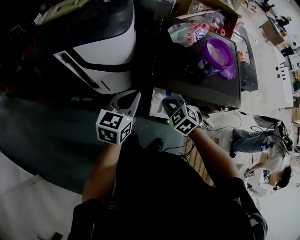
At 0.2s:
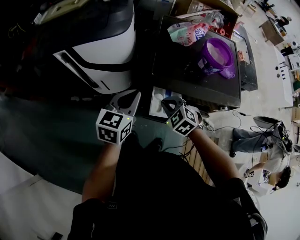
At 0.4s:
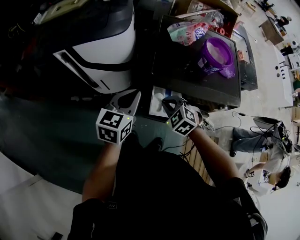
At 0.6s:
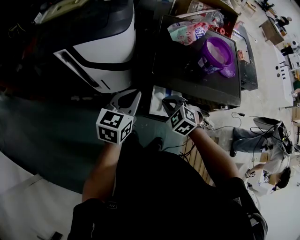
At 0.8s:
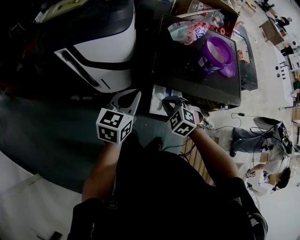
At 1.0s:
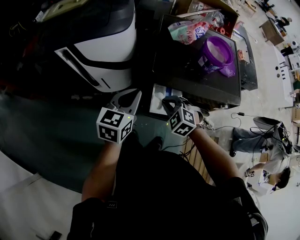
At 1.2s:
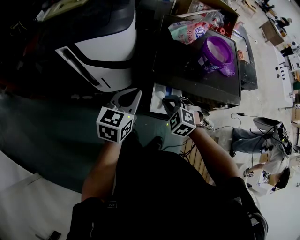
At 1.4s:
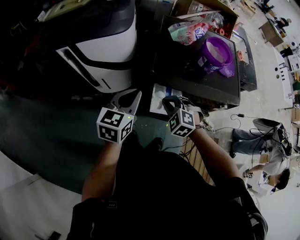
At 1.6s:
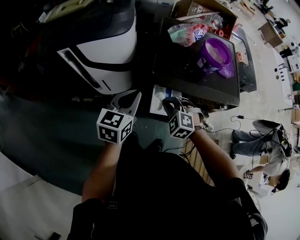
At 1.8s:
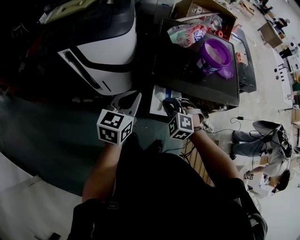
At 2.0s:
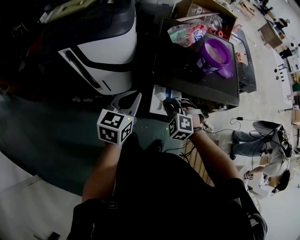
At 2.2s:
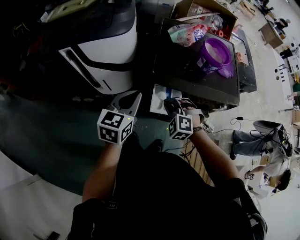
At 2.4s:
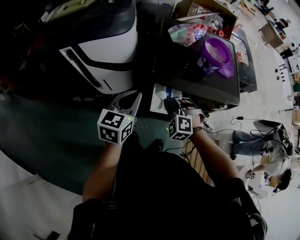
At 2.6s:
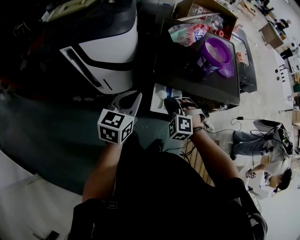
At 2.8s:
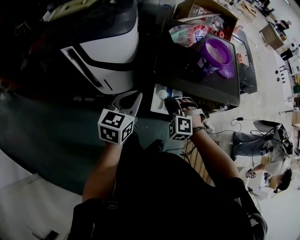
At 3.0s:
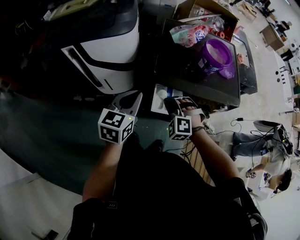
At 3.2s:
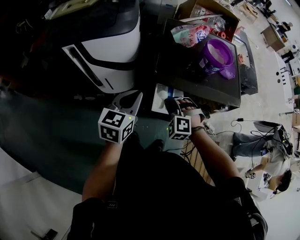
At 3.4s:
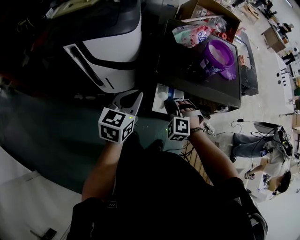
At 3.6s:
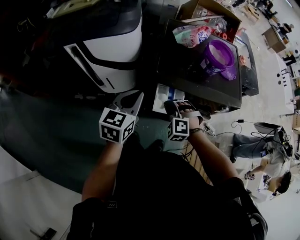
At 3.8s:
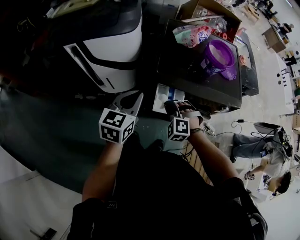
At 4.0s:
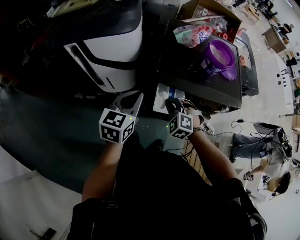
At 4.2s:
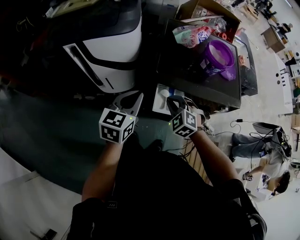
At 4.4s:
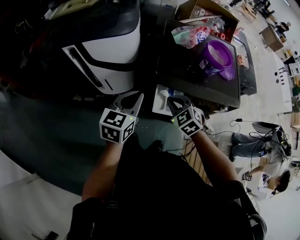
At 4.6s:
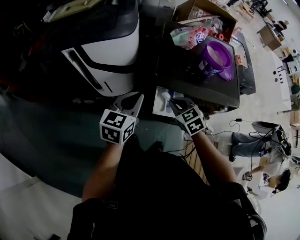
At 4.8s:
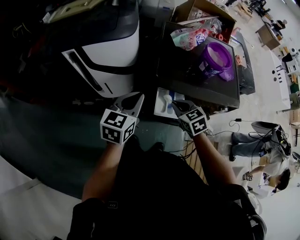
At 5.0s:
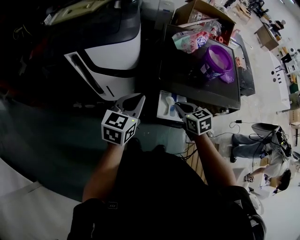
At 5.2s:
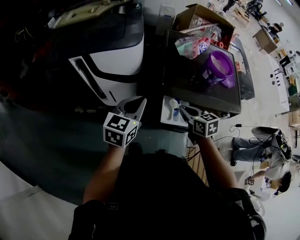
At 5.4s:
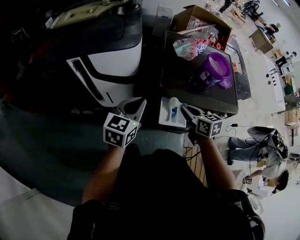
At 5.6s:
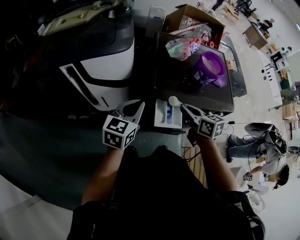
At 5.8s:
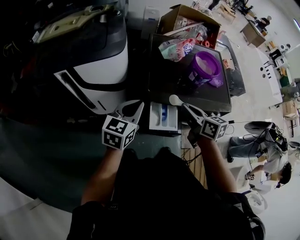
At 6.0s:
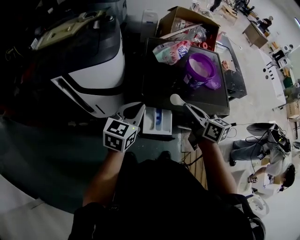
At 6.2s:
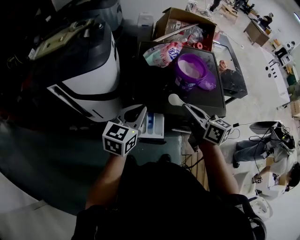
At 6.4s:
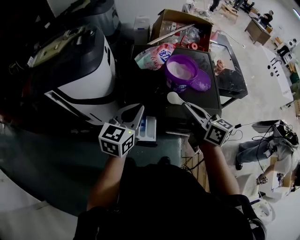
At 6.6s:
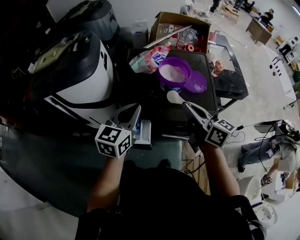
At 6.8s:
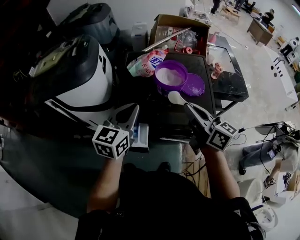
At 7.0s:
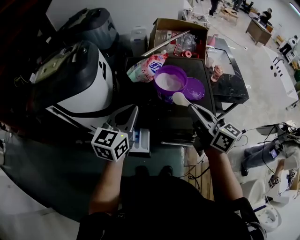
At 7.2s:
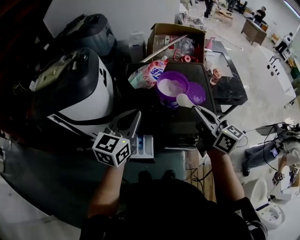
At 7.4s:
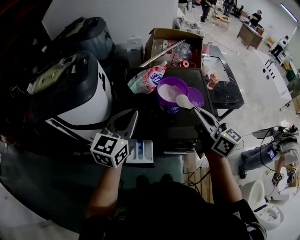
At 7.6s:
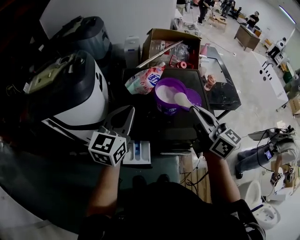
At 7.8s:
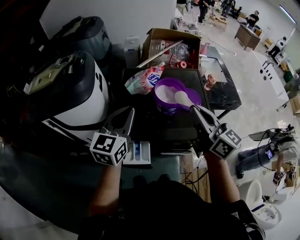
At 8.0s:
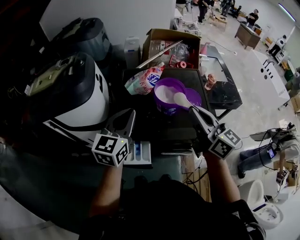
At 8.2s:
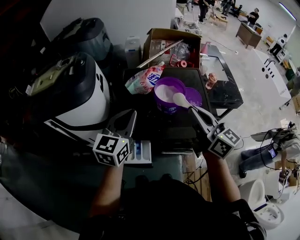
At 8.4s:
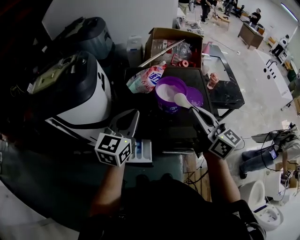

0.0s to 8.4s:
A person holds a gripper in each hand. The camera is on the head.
0.0s to 1.4s: There are only small adjustments of the grippers.
1.4s to 2.8s: The grippers move only a little.
2.8s to 4.2s: The right gripper changes its angle by approximately 20 degrees.
4.2s to 5.6s: The right gripper heads upward, covering about 10 cm, and rolls clockwise, seen from behind, by some 70 degrees.
5.6s to 7.0s: The grippers both shift to the right and upward by some 30 cm. The right gripper points its fingers roughly 30 degrees further upward.

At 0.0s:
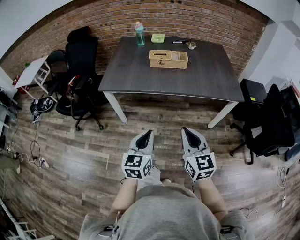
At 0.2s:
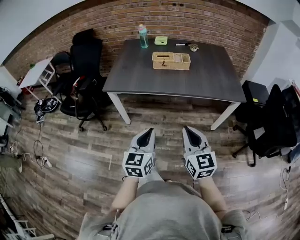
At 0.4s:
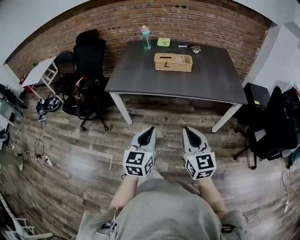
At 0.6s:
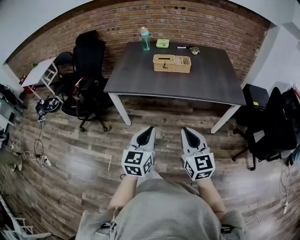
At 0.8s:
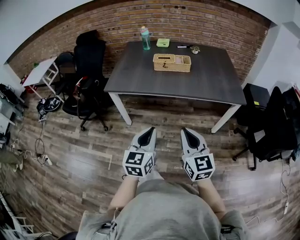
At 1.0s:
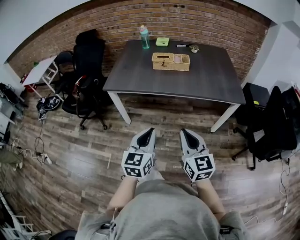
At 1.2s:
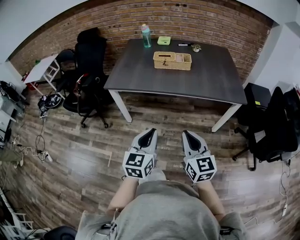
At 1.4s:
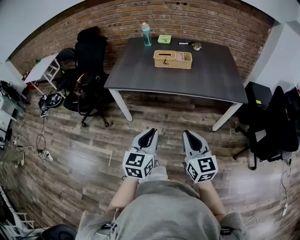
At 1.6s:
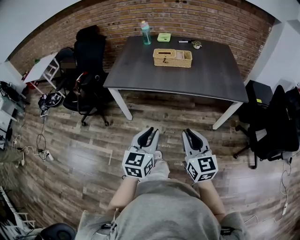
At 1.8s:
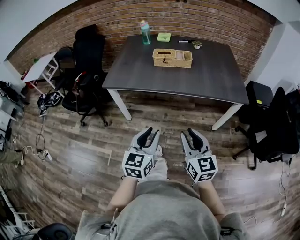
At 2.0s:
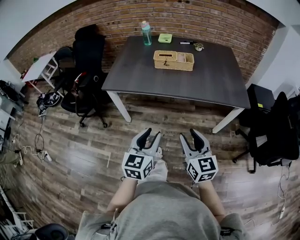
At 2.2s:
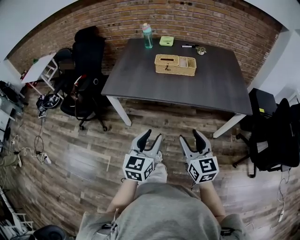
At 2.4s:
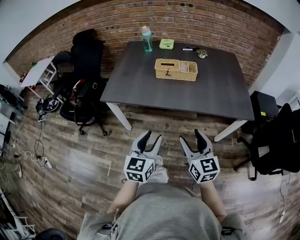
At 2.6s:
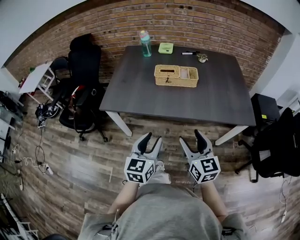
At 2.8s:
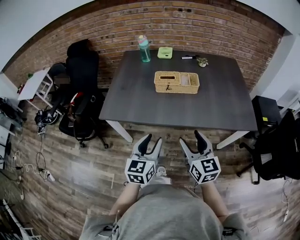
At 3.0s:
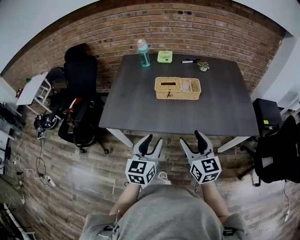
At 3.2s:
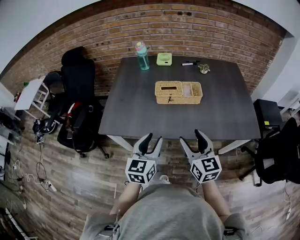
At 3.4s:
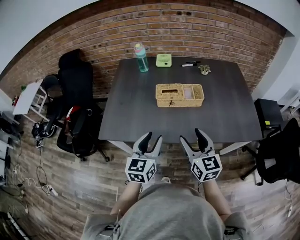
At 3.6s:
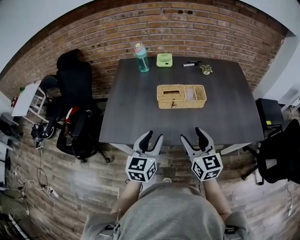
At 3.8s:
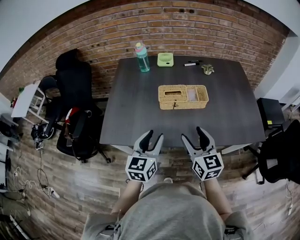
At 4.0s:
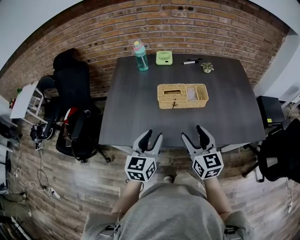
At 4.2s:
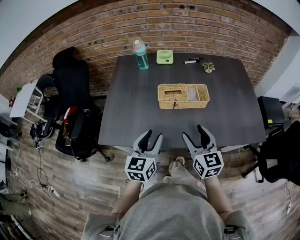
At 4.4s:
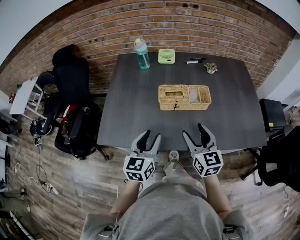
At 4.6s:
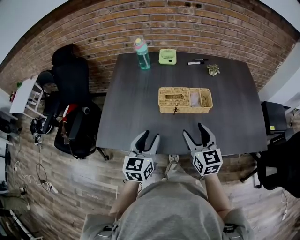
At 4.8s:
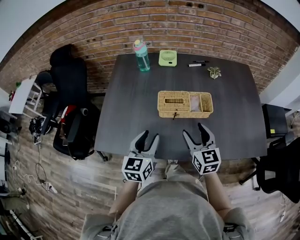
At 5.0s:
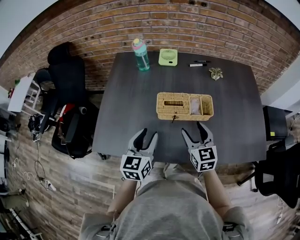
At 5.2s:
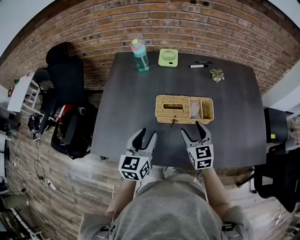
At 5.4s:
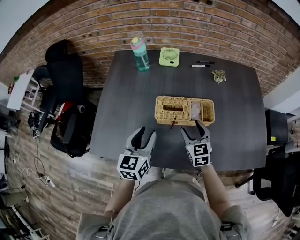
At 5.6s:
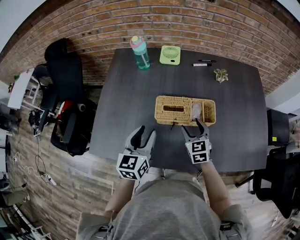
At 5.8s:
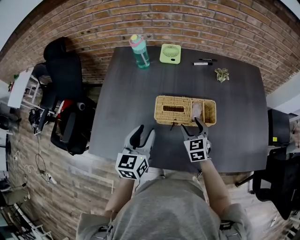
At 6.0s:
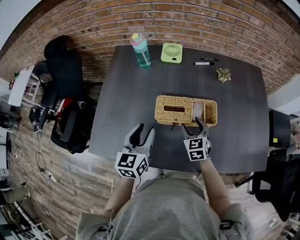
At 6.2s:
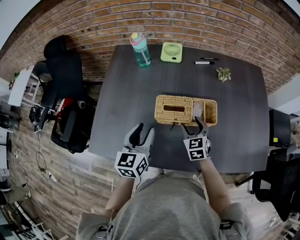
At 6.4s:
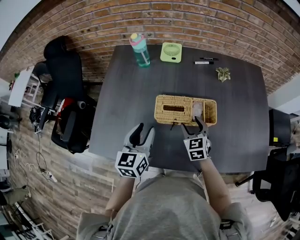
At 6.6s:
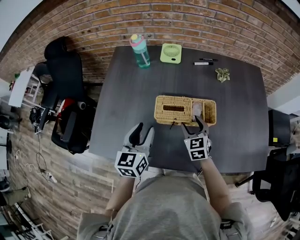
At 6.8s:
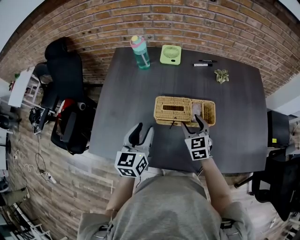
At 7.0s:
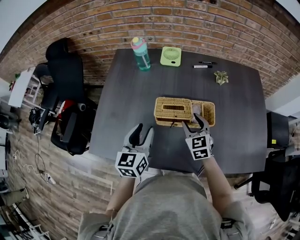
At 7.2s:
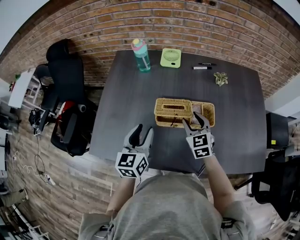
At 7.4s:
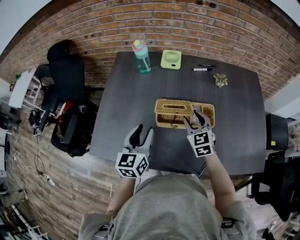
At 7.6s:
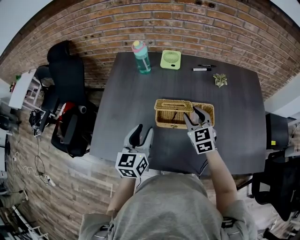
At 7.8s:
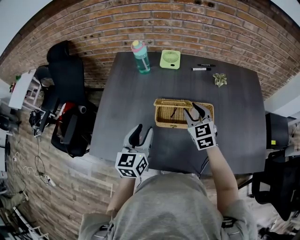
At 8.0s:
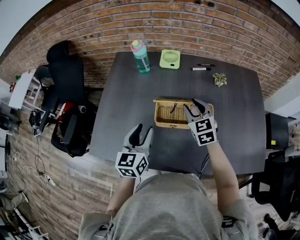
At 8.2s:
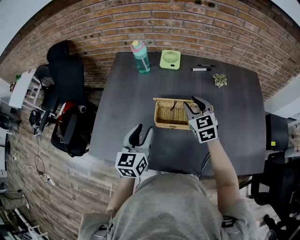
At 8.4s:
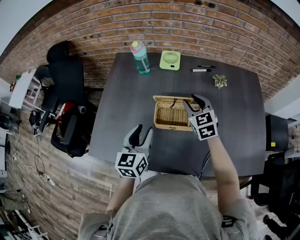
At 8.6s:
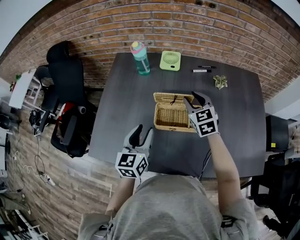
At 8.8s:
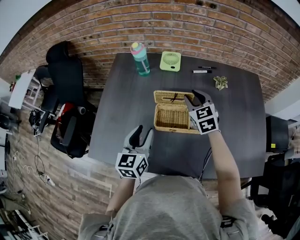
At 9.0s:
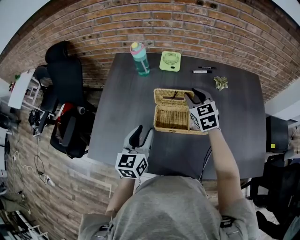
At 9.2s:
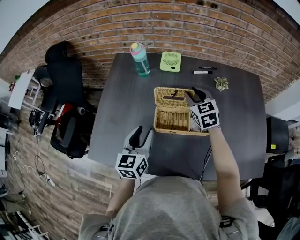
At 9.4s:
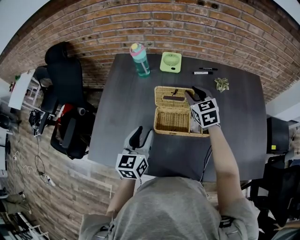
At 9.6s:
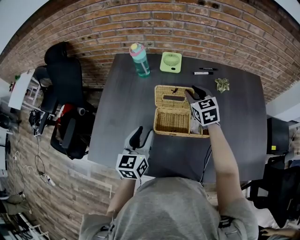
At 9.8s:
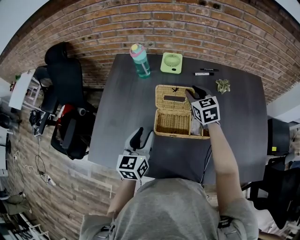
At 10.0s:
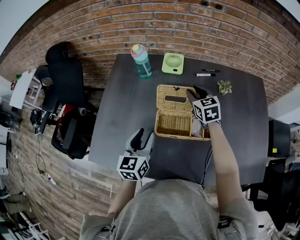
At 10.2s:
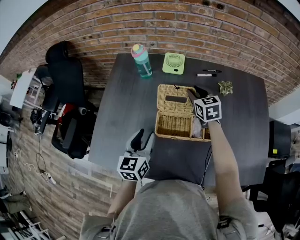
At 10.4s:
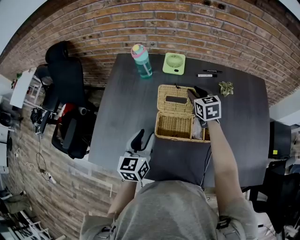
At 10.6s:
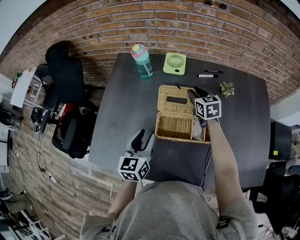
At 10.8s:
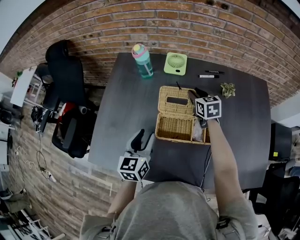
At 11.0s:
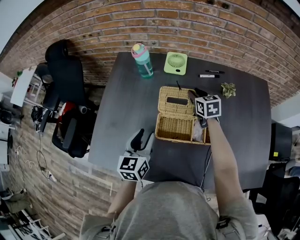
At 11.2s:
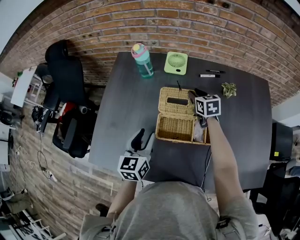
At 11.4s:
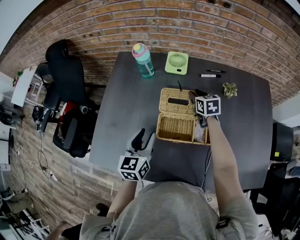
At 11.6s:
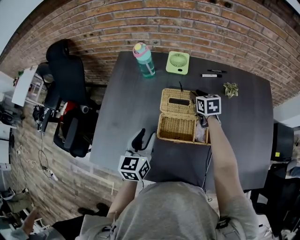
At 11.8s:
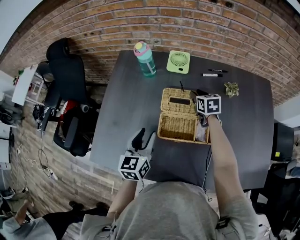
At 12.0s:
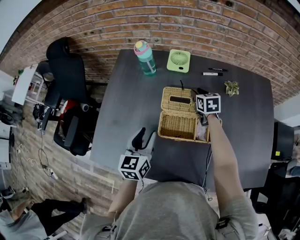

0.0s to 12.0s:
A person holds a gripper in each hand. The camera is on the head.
0.0s to 1.6s: The right gripper moves some 5 cm; the left gripper changes place by roughly 5 cm.
1.6s to 3.0s: The grippers both shift forward by some 30 cm. The left gripper opens up. The right gripper opens.
3.0s to 4.4s: The grippers both shift forward by about 15 cm.
4.4s to 6.0s: The left gripper shifts roughly 15 cm forward; the right gripper moves forward and downward, some 25 cm, and swivels roughly 30 degrees.
6.0s to 7.6s: The right gripper is displaced upward by about 10 cm.
7.6s to 9.0s: The right gripper shifts approximately 10 cm forward.
9.0s to 10.4s: The right gripper travels forward by some 10 cm.
10.4s to 12.0s: The right gripper goes about 5 cm downward.

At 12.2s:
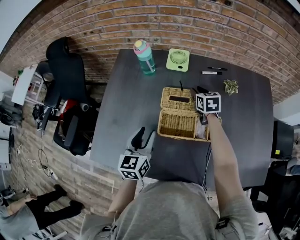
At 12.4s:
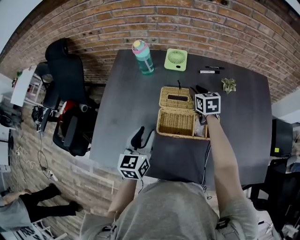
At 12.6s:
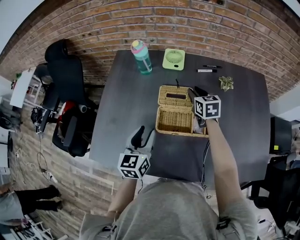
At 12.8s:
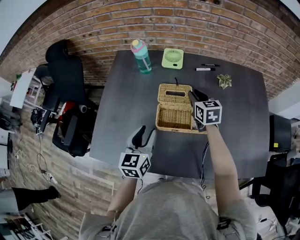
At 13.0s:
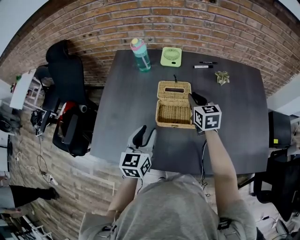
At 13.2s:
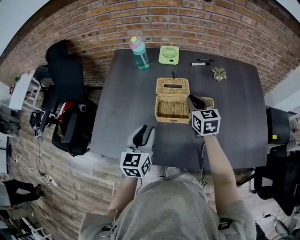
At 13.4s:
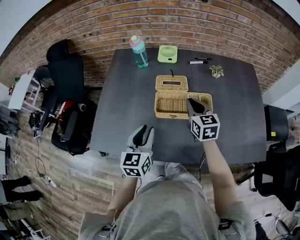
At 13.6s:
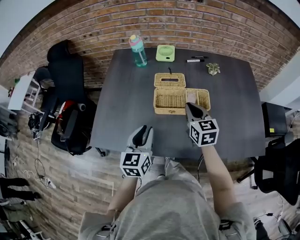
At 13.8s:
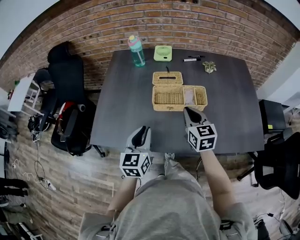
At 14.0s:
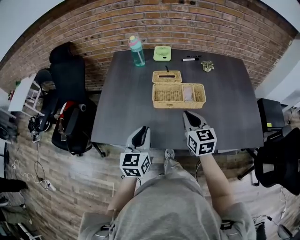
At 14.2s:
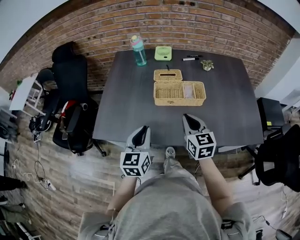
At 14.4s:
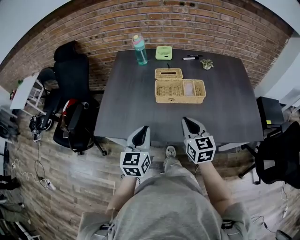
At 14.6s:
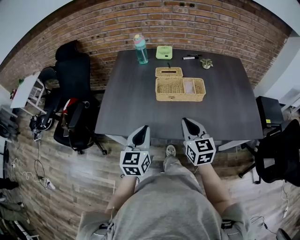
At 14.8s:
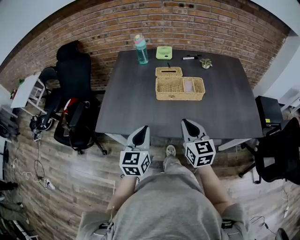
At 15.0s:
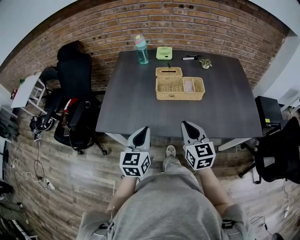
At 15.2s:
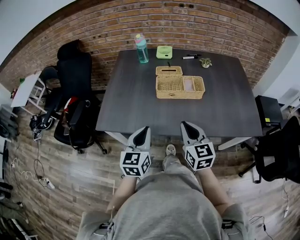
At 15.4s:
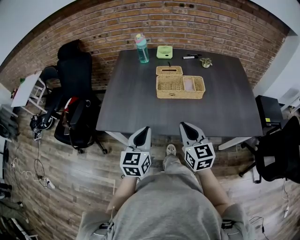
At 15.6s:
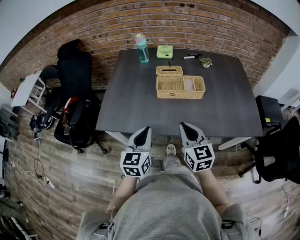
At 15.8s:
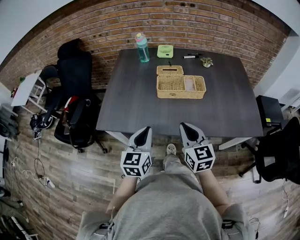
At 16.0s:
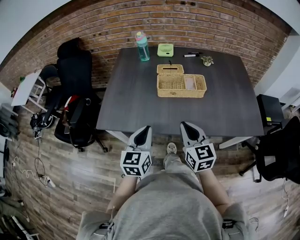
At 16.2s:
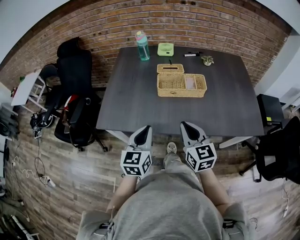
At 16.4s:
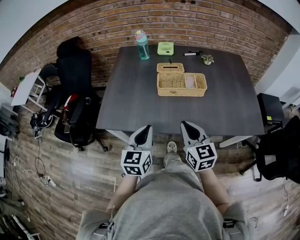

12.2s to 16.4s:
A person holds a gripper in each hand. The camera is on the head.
12.2s to 13.6s: The right gripper moves backward, approximately 25 cm, and closes its fingers. The left gripper goes roughly 15 cm backward.
13.6s to 15.0s: The left gripper heads backward, covering about 15 cm; the right gripper is displaced backward by about 25 cm.
15.0s to 16.4s: The grippers make only small movements.
